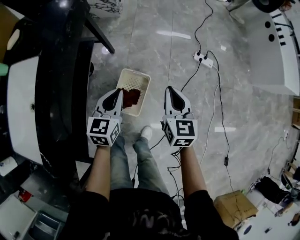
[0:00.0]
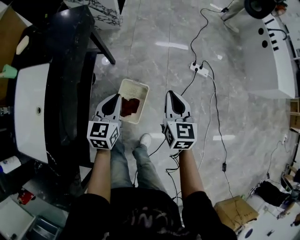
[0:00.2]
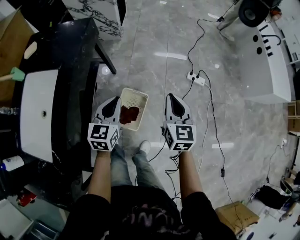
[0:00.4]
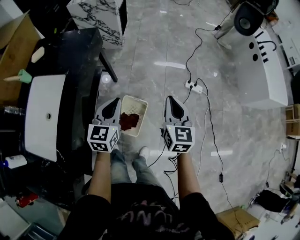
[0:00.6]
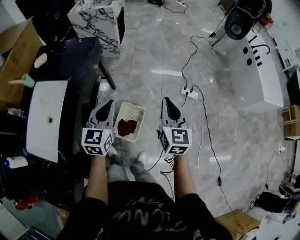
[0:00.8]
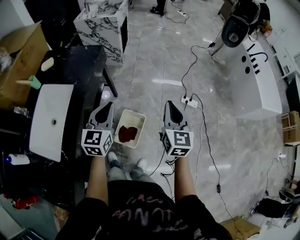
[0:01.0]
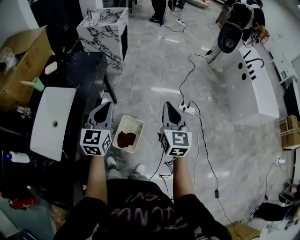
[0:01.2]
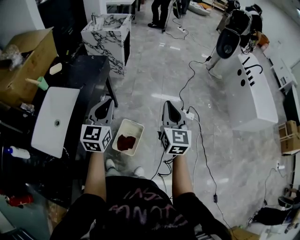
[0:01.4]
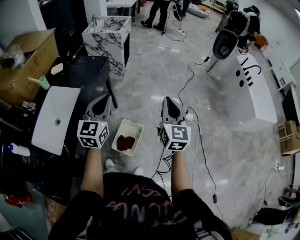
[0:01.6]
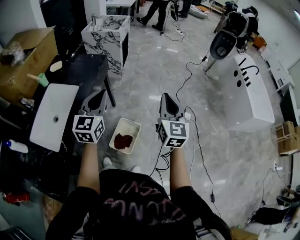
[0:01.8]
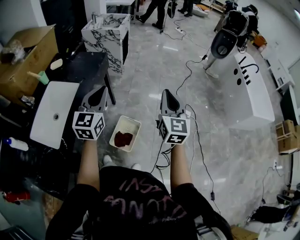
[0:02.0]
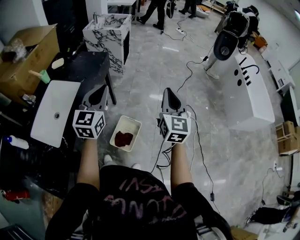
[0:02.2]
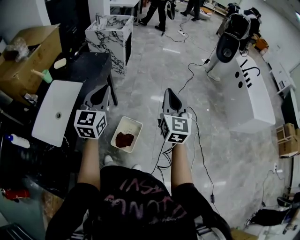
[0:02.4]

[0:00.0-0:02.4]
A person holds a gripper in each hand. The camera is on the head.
0:00.0 to 0:01.2: The two grippers go roughly 30 cm upward. The left gripper swivels some 20 degrees.
0:01.2 to 0:02.4: The grippers both shift upward by approximately 10 cm.

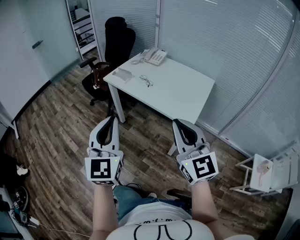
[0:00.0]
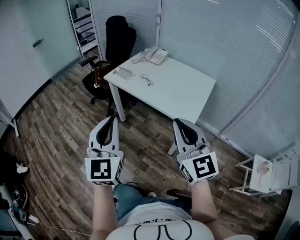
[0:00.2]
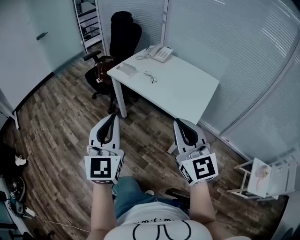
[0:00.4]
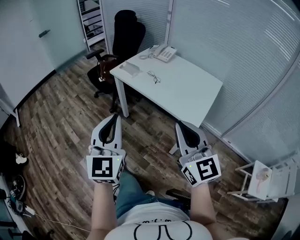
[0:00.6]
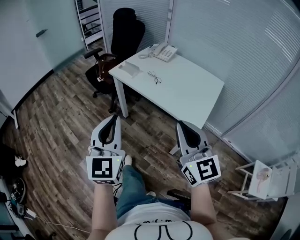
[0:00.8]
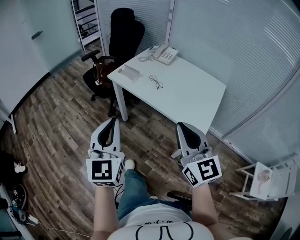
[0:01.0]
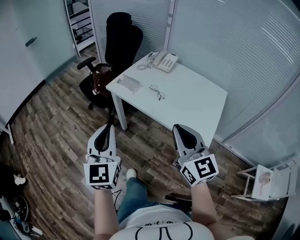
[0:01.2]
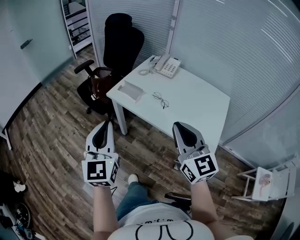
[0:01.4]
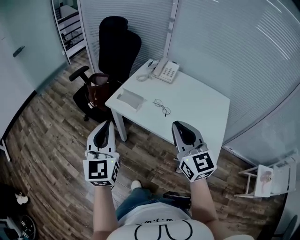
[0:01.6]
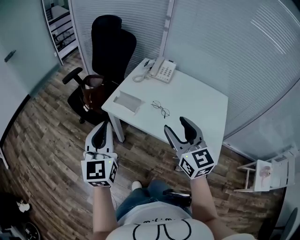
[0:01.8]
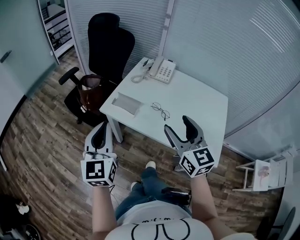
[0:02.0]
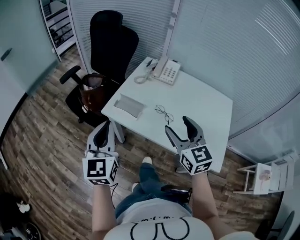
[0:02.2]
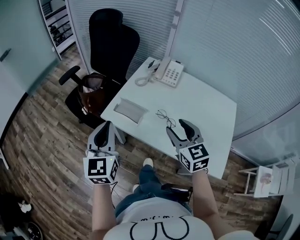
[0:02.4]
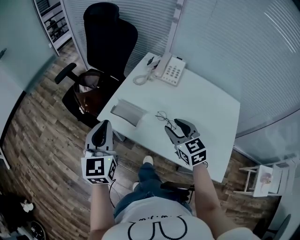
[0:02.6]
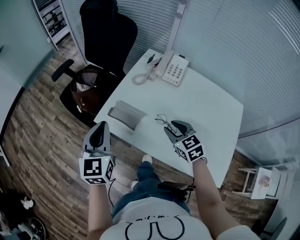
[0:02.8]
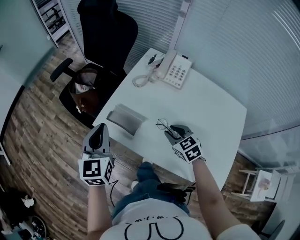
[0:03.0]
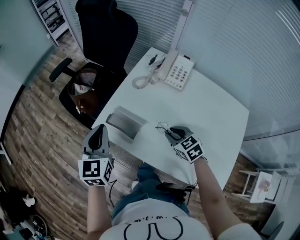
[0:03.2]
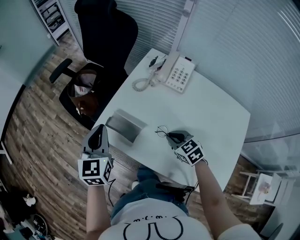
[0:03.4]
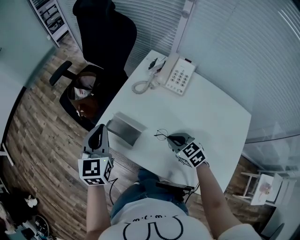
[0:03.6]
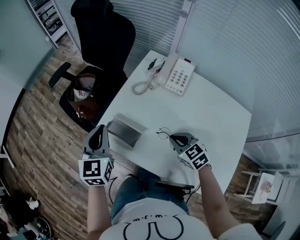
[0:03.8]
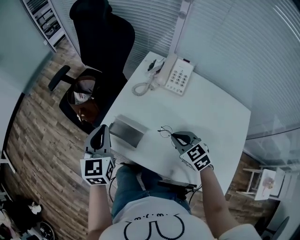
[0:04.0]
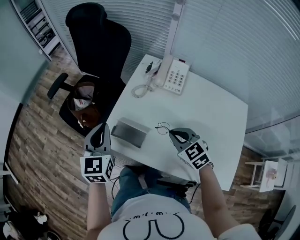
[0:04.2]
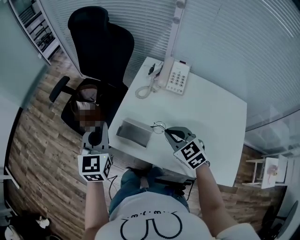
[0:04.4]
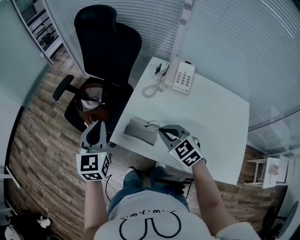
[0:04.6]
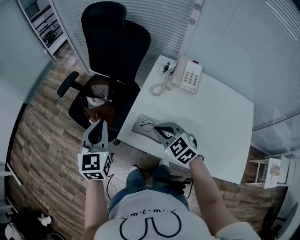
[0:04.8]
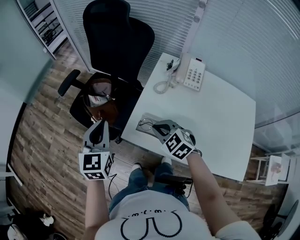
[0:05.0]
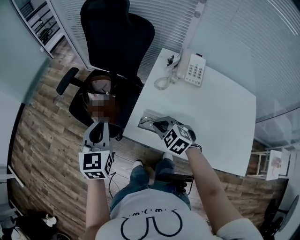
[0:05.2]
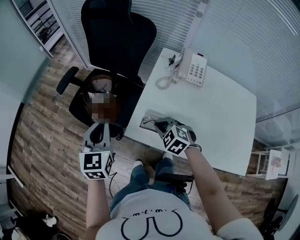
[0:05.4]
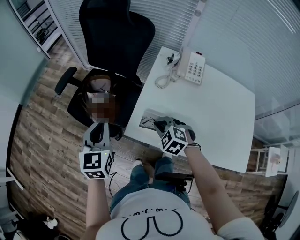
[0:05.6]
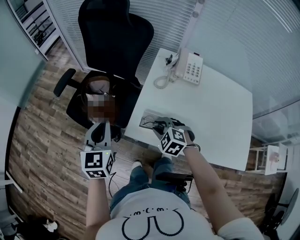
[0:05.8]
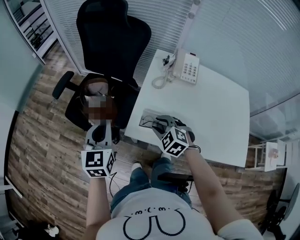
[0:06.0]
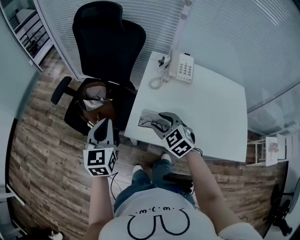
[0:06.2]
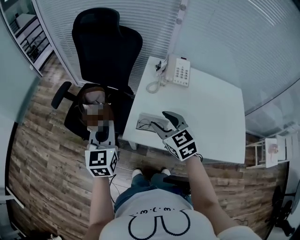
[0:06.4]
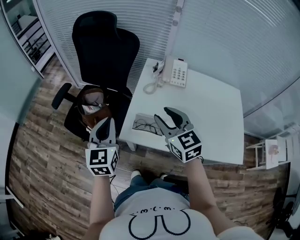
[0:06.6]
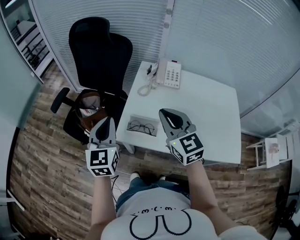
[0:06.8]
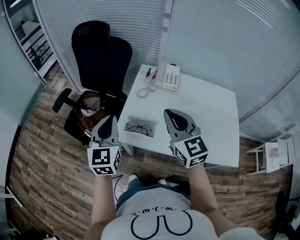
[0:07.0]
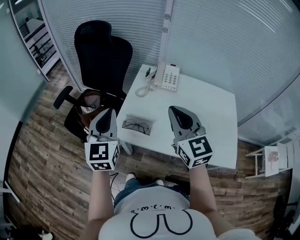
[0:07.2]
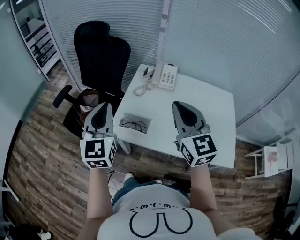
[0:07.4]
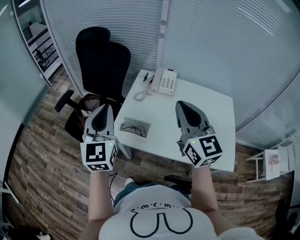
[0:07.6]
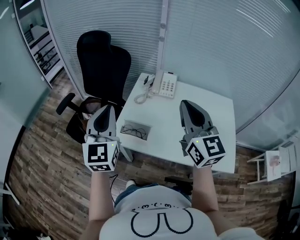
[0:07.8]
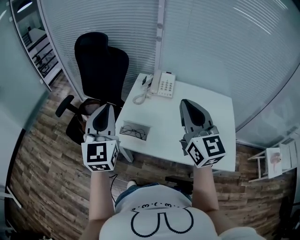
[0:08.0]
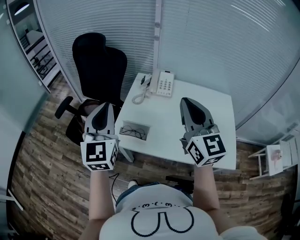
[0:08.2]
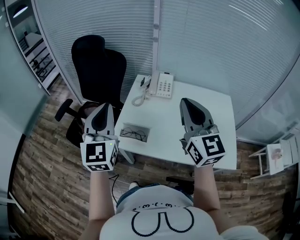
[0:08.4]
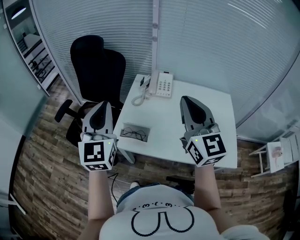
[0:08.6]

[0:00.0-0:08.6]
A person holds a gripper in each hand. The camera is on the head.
0:00.0 to 0:01.4: The two grippers go roughly 25 cm forward.
0:01.4 to 0:02.8: The right gripper is displaced forward and downward by approximately 40 cm, points its fingers approximately 40 degrees further downward, and opens up. Meanwhile the left gripper shifts approximately 30 cm forward.
0:02.8 to 0:04.4: The left gripper heads forward, covering roughly 10 cm. The right gripper shifts roughly 5 cm forward and to the left, moves approximately 10 cm downward and comes back, and closes.
0:04.4 to 0:05.8: The right gripper travels to the left and downward by about 20 cm, and turns by roughly 30 degrees. The left gripper heads to the left, covering about 10 cm.
0:05.8 to 0:07.2: The left gripper travels to the right, upward and backward by roughly 15 cm. The right gripper heads upward and to the right, covering some 30 cm, tips its fingers upward by some 50 degrees, and opens, then closes again.
0:07.2 to 0:08.6: The left gripper travels upward by approximately 10 cm. Meanwhile the right gripper moves upward and to the right, approximately 10 cm.

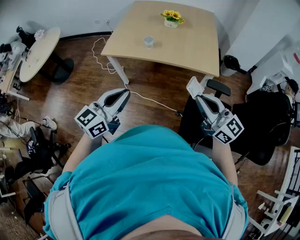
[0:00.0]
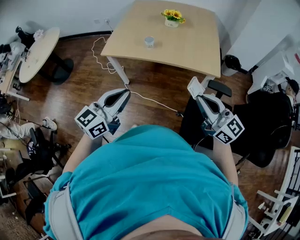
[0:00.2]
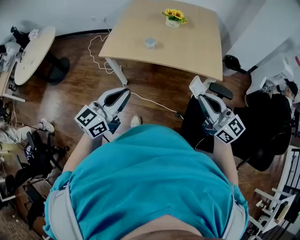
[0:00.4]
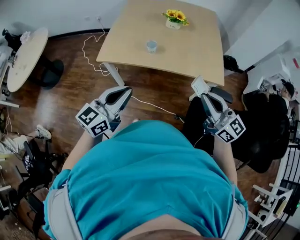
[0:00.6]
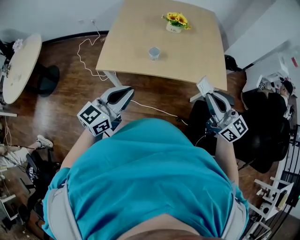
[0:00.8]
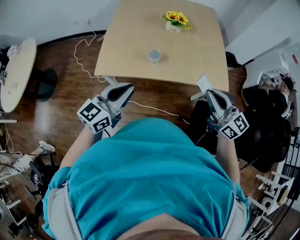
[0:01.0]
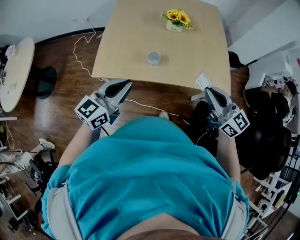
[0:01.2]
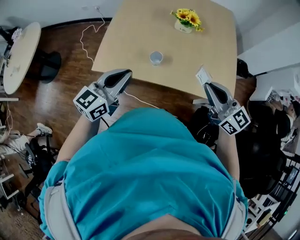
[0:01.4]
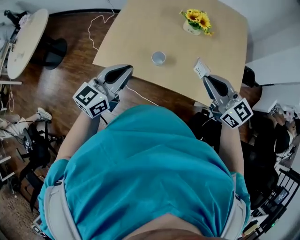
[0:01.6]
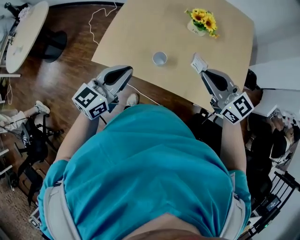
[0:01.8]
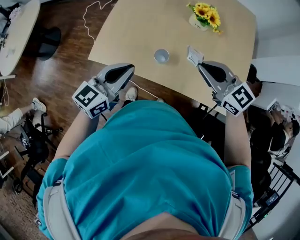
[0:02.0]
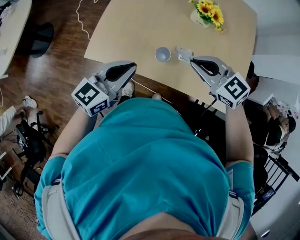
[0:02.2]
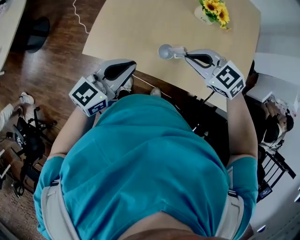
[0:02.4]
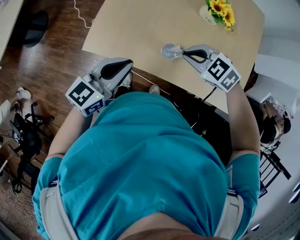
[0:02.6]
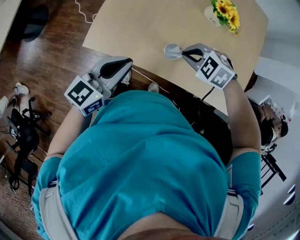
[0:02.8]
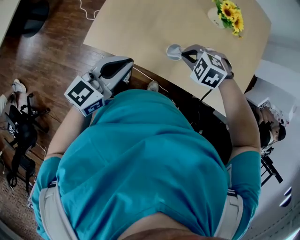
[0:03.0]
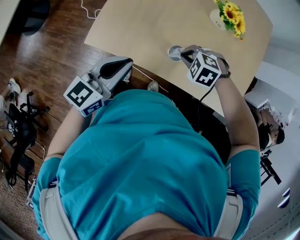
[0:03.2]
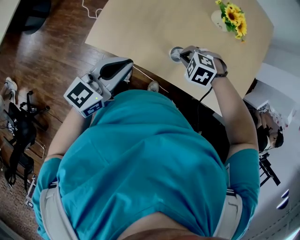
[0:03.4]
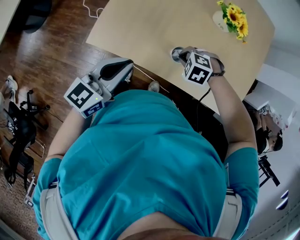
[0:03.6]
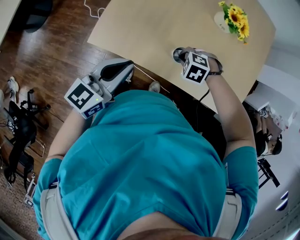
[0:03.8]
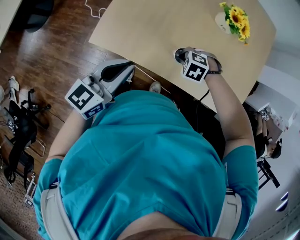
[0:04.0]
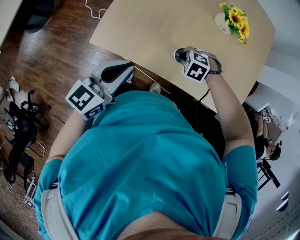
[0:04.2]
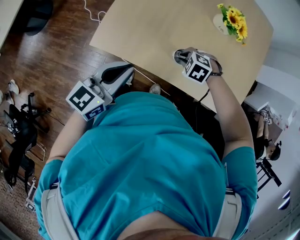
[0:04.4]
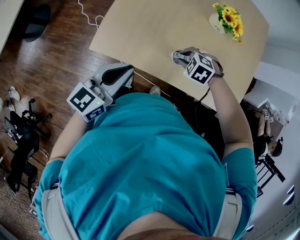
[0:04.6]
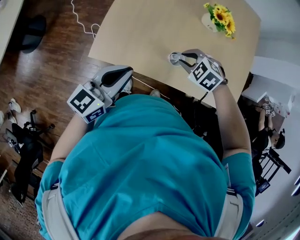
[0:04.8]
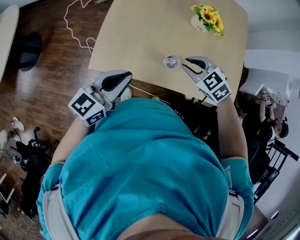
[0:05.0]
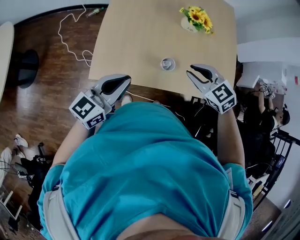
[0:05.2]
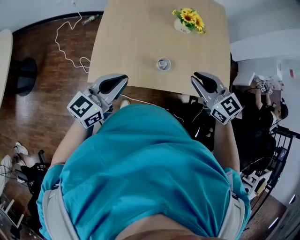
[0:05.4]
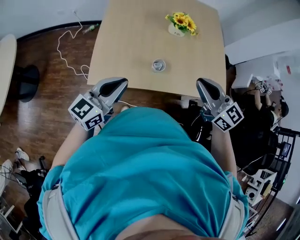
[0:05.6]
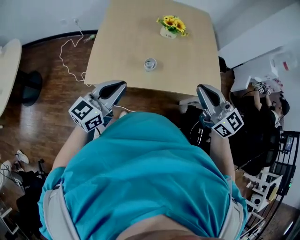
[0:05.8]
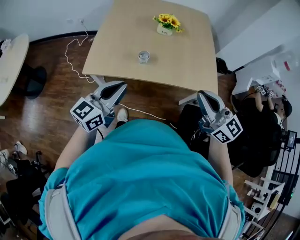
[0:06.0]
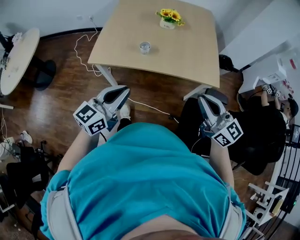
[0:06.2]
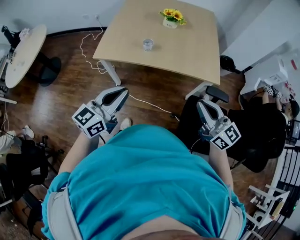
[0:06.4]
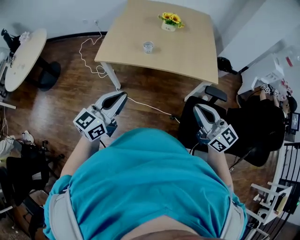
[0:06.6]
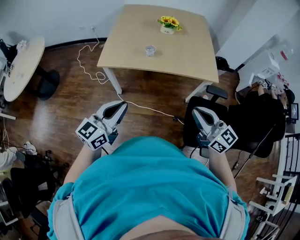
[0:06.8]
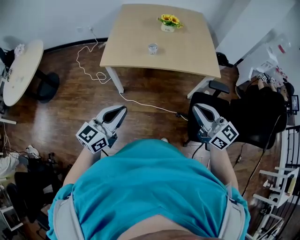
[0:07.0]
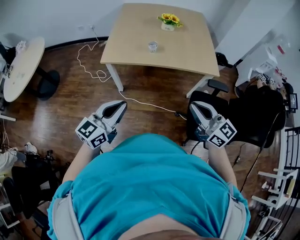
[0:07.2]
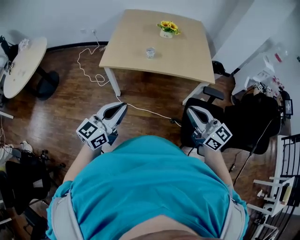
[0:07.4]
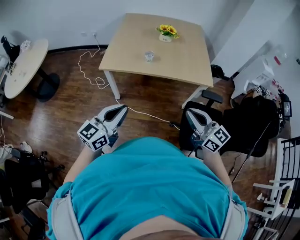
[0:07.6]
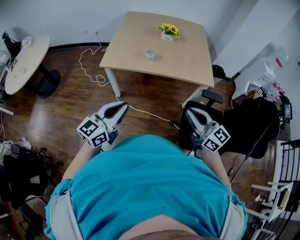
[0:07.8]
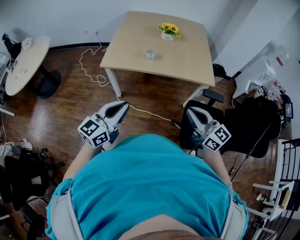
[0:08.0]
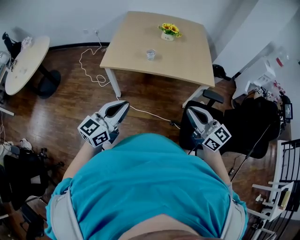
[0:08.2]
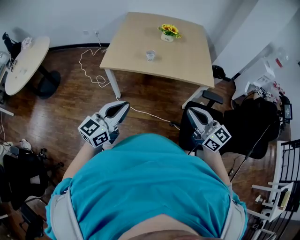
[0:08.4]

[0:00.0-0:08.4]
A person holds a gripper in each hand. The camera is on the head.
0:00.0 to 0:01.4: Both grippers travel together forward, about 35 cm.
0:01.4 to 0:02.8: The right gripper heads forward, downward and to the left, covering roughly 30 cm, and points its fingers about 60 degrees further downward. Meanwhile the left gripper heads forward and downward, covering about 15 cm.
0:02.8 to 0:04.2: The right gripper goes roughly 10 cm downward.
0:04.2 to 0:05.6: The right gripper shifts approximately 35 cm upward, and tips its fingers upward by about 70 degrees. The left gripper moves upward, some 10 cm, and changes its angle by roughly 20 degrees.
0:05.6 to 0:07.0: The grippers both shift backward by some 35 cm.
0:07.0 to 0:08.4: The left gripper travels to the right by about 5 cm.

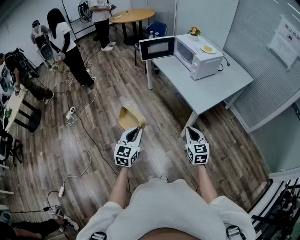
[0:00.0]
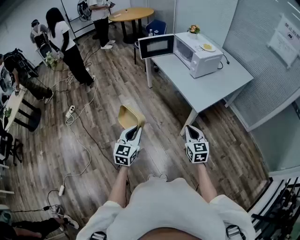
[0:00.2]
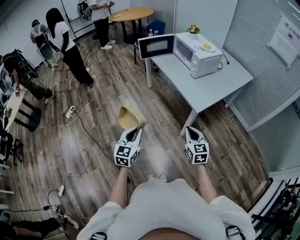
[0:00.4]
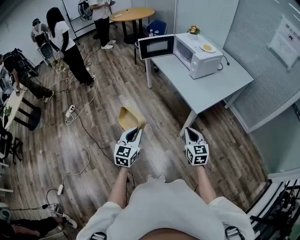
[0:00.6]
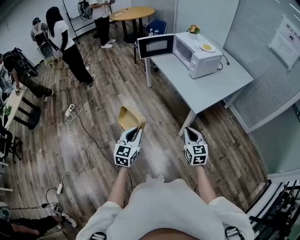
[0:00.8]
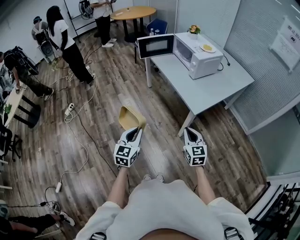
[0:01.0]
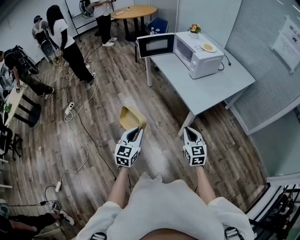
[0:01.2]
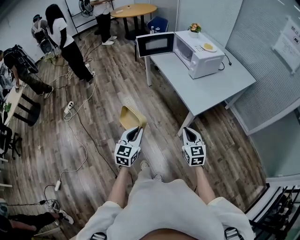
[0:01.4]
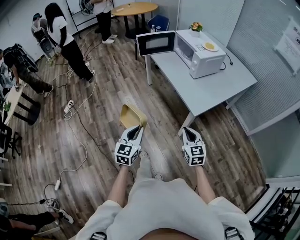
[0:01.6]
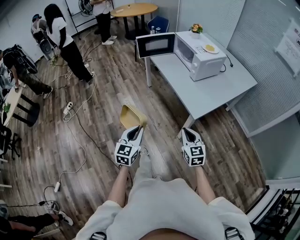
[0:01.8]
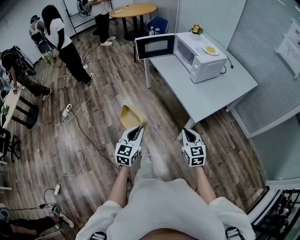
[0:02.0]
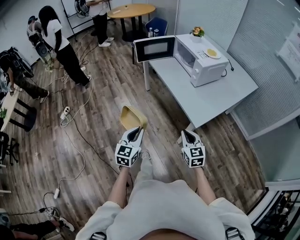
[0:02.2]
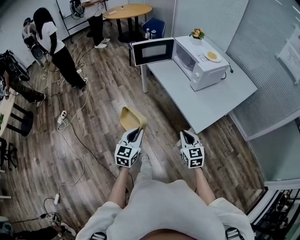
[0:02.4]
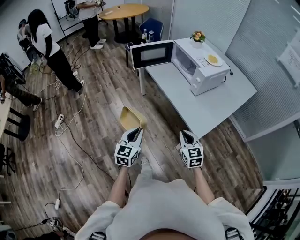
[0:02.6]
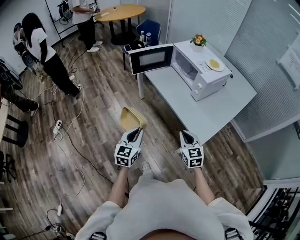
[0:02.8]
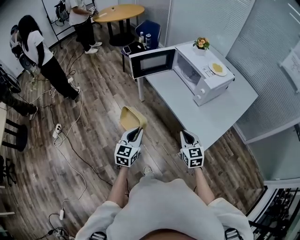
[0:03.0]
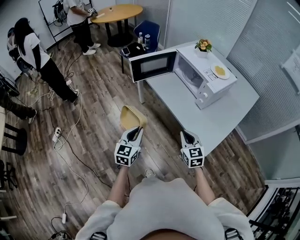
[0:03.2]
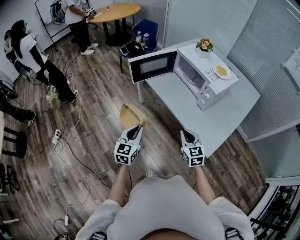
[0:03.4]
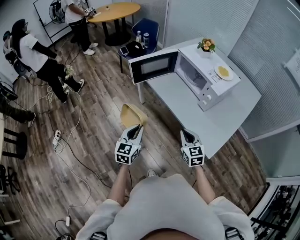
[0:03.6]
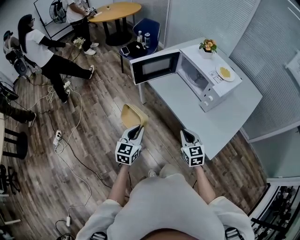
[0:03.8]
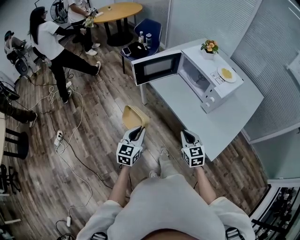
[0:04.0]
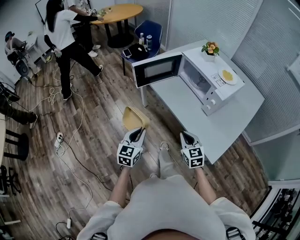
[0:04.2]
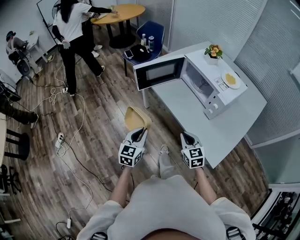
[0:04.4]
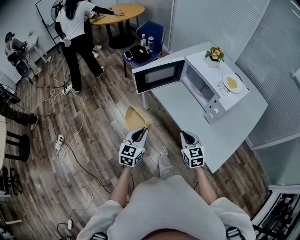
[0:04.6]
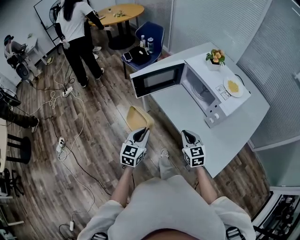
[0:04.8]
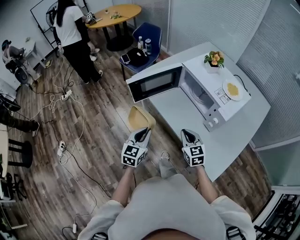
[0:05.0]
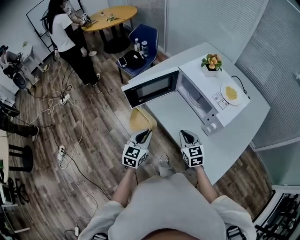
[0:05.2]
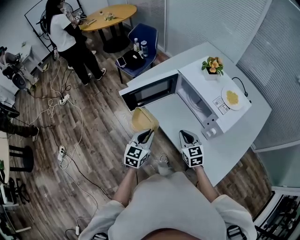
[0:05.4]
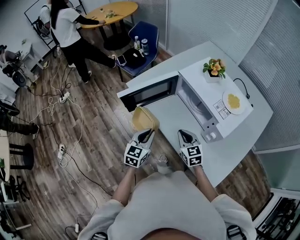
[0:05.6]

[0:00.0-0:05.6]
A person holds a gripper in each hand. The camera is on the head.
0:00.0 to 0:01.4: The left gripper changes place by about 5 cm.
0:01.4 to 0:02.8: The grippers both shift forward by some 25 cm.
0:02.8 to 0:04.2: Both grippers travel together forward and to the left, about 15 cm.
0:04.2 to 0:05.6: Both grippers move forward, approximately 20 cm.
